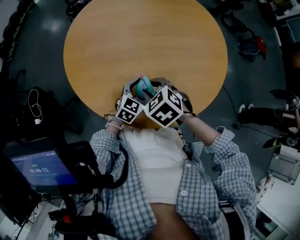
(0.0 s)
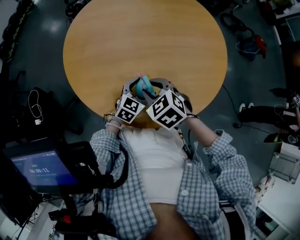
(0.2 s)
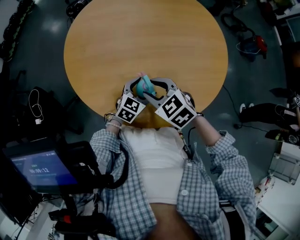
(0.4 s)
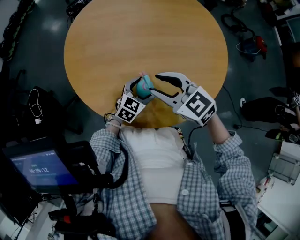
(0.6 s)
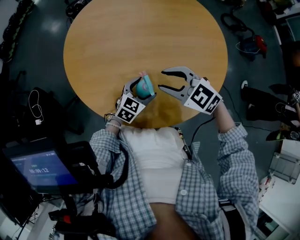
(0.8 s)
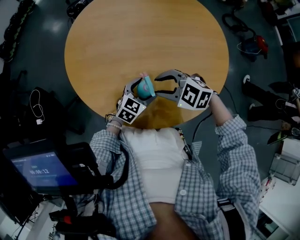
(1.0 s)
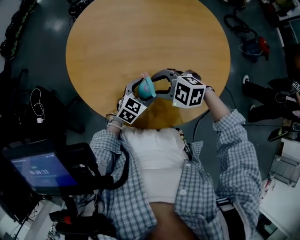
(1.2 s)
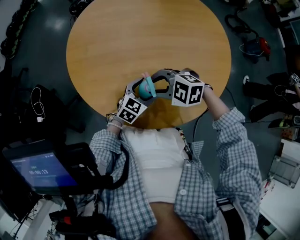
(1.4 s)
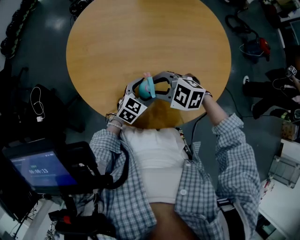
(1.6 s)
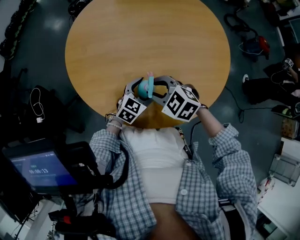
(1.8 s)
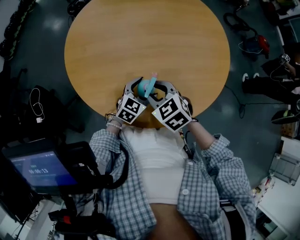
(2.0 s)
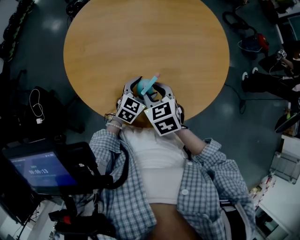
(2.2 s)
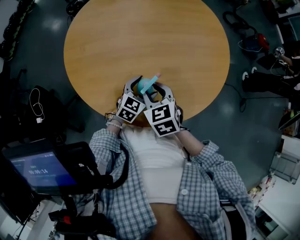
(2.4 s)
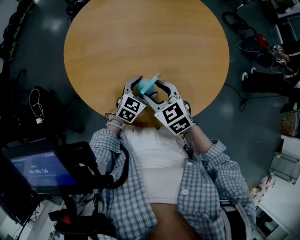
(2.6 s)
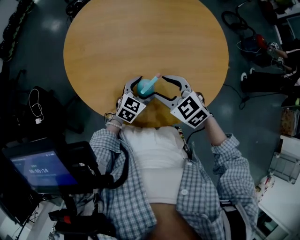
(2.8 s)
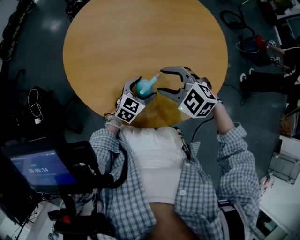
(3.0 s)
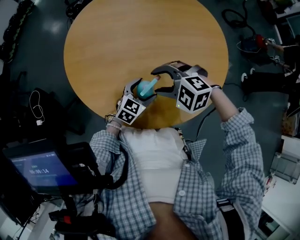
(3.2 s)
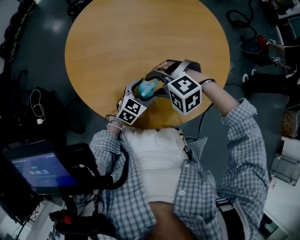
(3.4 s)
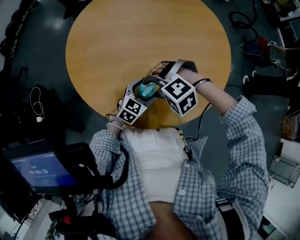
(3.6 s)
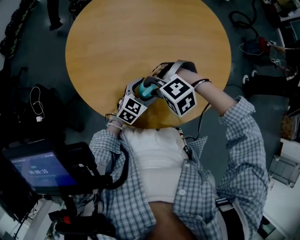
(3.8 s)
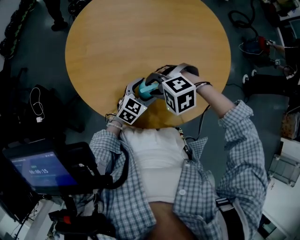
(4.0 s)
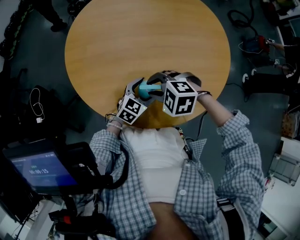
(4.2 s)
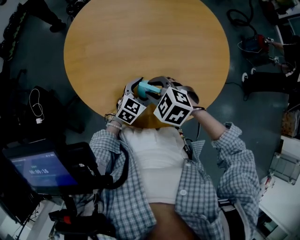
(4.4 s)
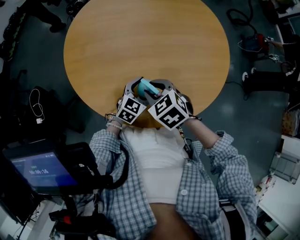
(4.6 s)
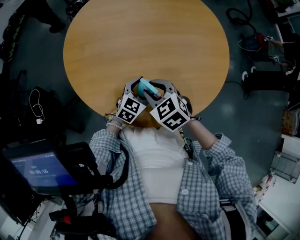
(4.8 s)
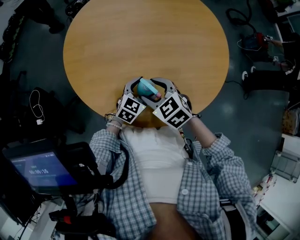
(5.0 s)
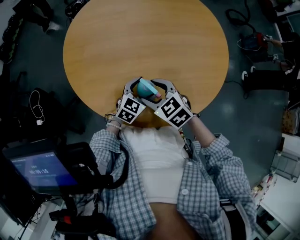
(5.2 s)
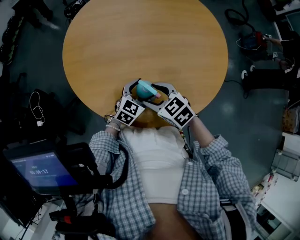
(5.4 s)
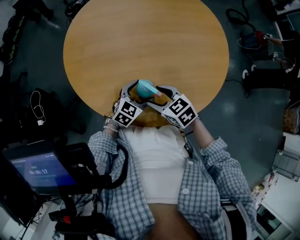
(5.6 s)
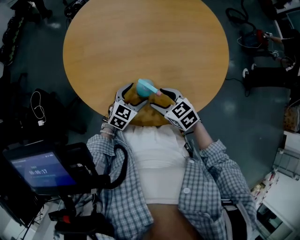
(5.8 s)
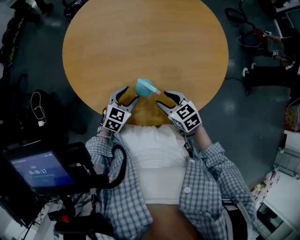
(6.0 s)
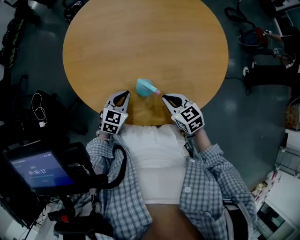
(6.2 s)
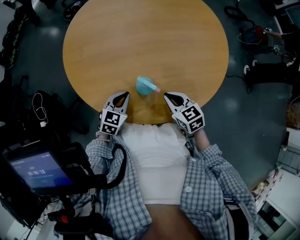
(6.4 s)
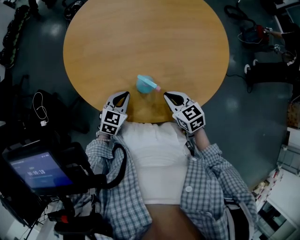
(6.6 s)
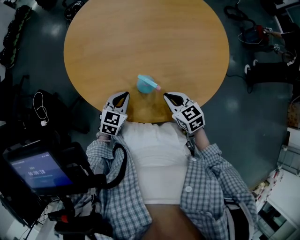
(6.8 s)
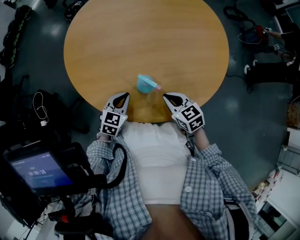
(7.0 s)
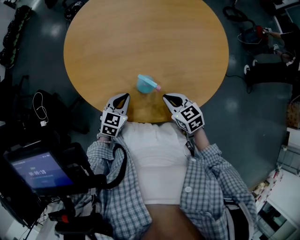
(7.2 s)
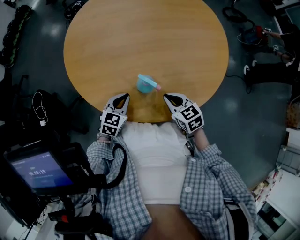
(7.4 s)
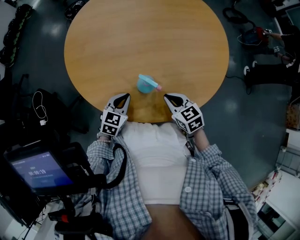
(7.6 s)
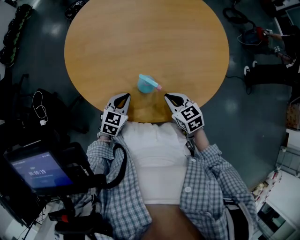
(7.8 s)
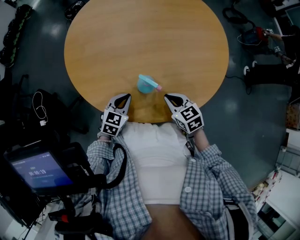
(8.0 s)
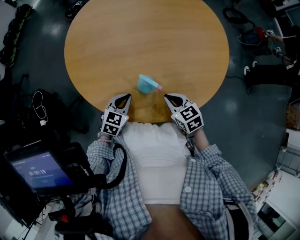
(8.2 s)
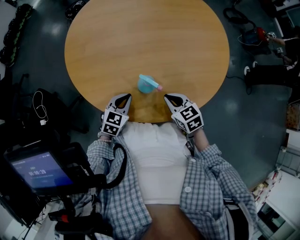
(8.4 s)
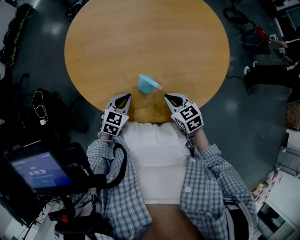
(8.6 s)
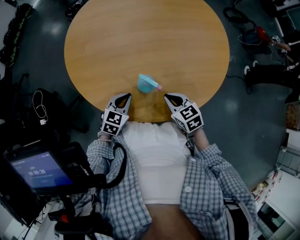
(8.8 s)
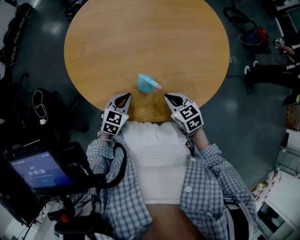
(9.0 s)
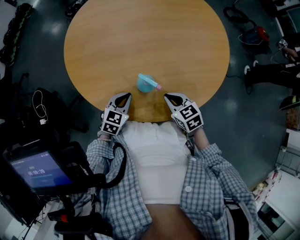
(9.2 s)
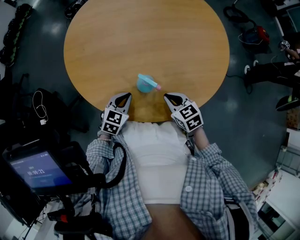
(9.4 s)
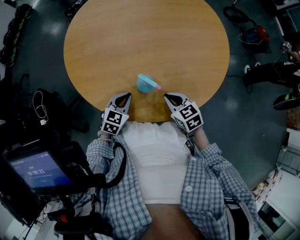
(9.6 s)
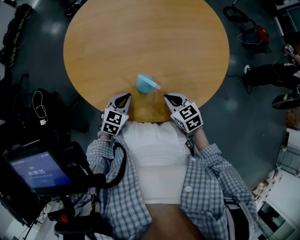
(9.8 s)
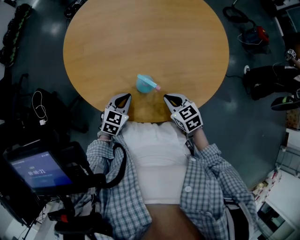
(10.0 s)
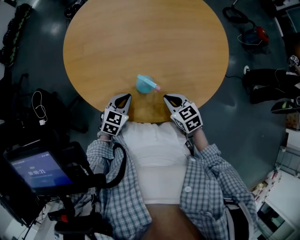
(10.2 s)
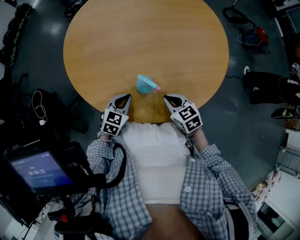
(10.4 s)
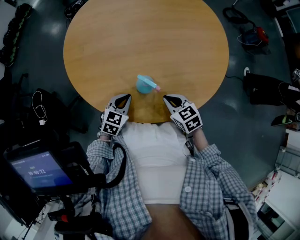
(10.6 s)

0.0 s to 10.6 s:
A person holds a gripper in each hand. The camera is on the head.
0.0 to 1.6 s: The right gripper moves about 5 cm upward and comes back, and changes its angle by roughly 40 degrees.
1.6 to 3.0 s: The right gripper changes place by approximately 5 cm, and opens its fingers.
3.0 to 4.6 s: The right gripper moves approximately 5 cm, rotates approximately 30 degrees, and closes its fingers.
4.6 to 6.0 s: The right gripper travels downward and to the right by roughly 10 cm, while the left gripper shifts approximately 10 cm to the left.
6.0 to 7.6 s: The left gripper closes. The right gripper closes its fingers.
7.6 to 10.6 s: Both grippers stay about where they are.

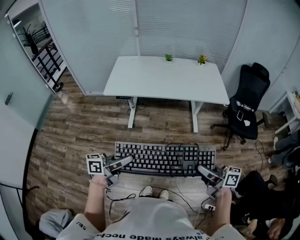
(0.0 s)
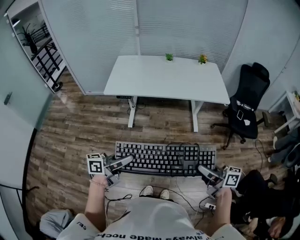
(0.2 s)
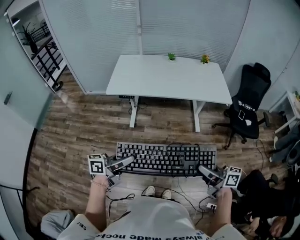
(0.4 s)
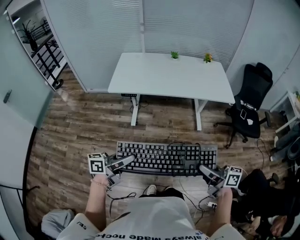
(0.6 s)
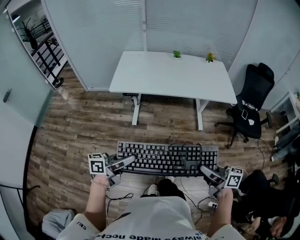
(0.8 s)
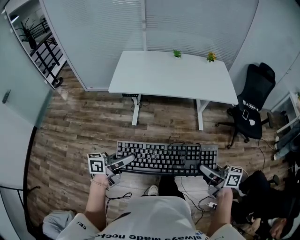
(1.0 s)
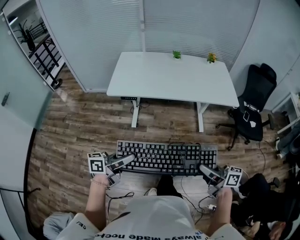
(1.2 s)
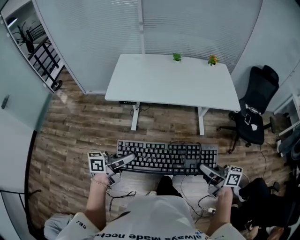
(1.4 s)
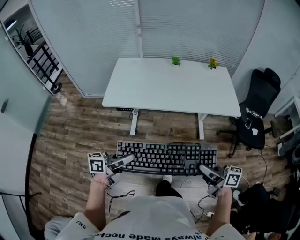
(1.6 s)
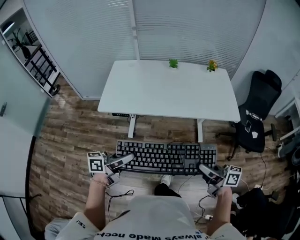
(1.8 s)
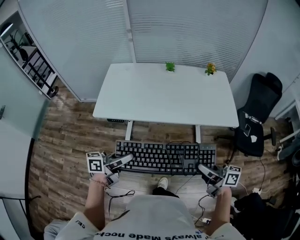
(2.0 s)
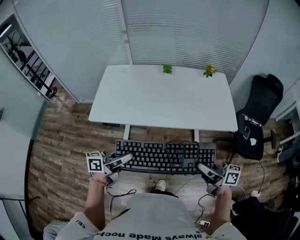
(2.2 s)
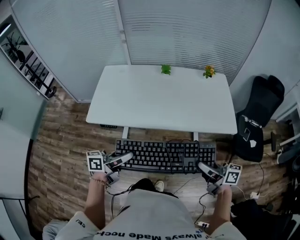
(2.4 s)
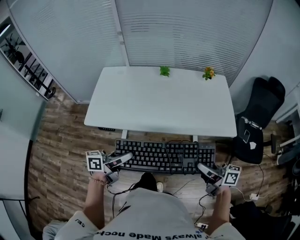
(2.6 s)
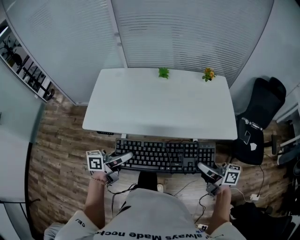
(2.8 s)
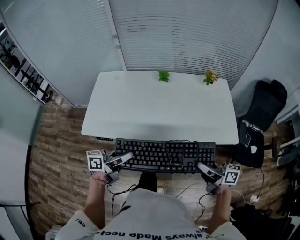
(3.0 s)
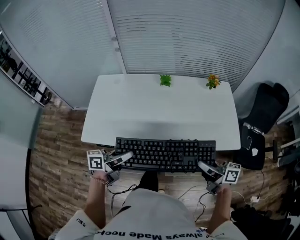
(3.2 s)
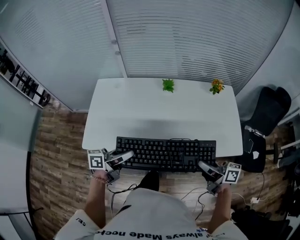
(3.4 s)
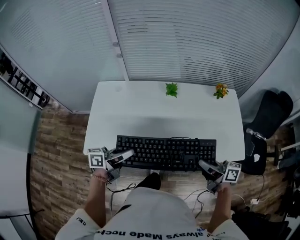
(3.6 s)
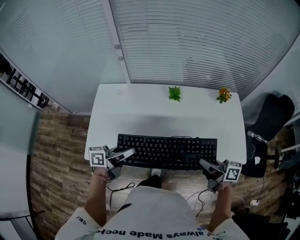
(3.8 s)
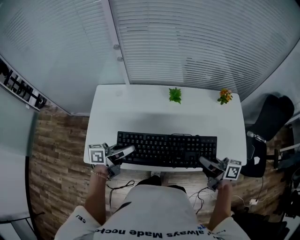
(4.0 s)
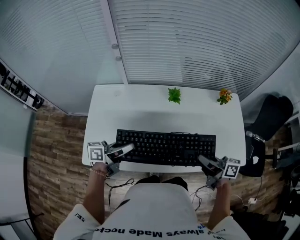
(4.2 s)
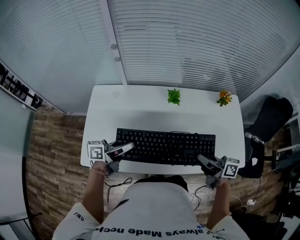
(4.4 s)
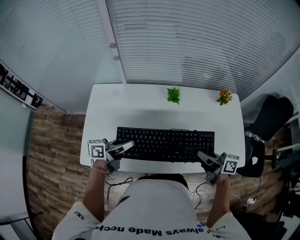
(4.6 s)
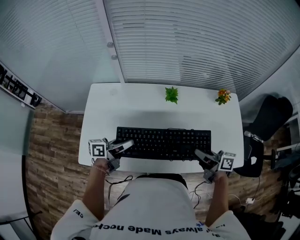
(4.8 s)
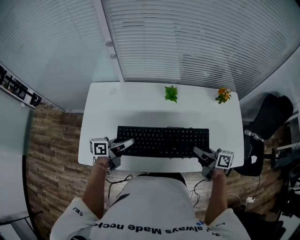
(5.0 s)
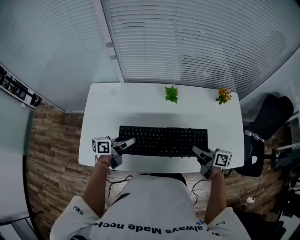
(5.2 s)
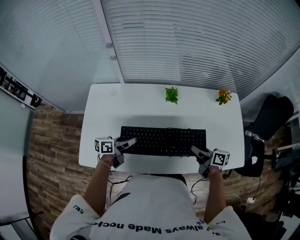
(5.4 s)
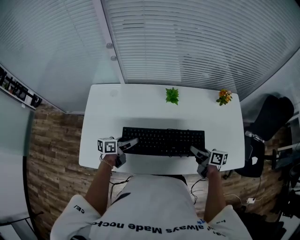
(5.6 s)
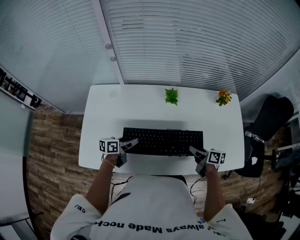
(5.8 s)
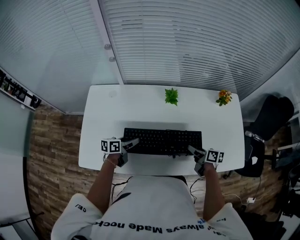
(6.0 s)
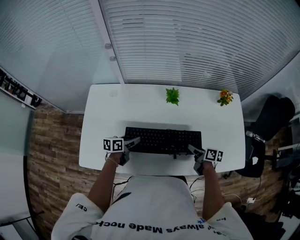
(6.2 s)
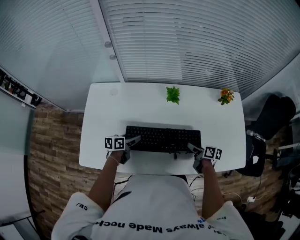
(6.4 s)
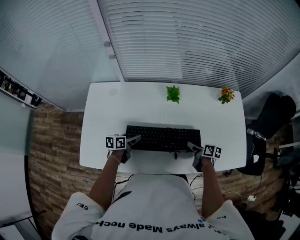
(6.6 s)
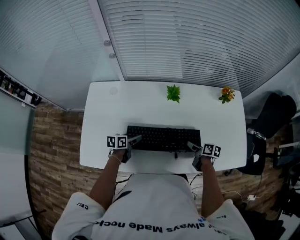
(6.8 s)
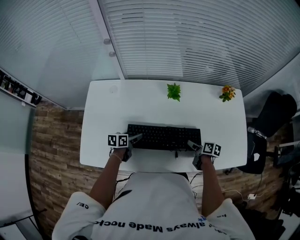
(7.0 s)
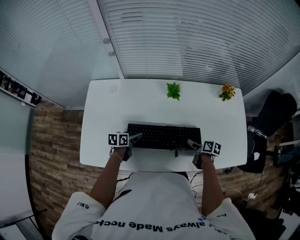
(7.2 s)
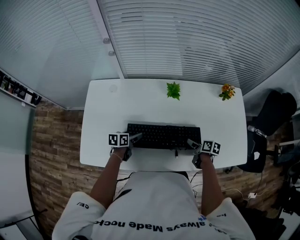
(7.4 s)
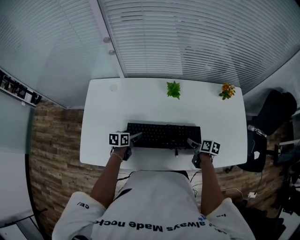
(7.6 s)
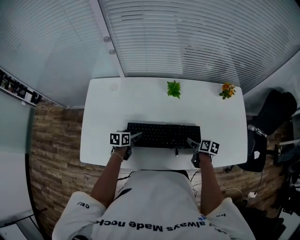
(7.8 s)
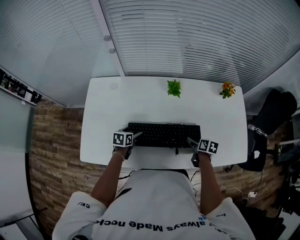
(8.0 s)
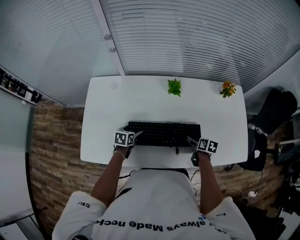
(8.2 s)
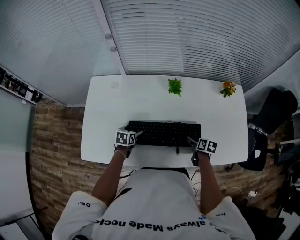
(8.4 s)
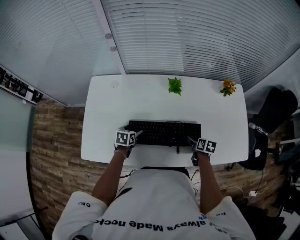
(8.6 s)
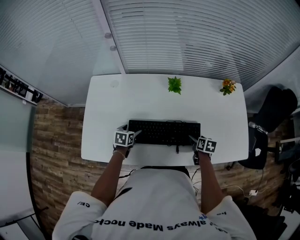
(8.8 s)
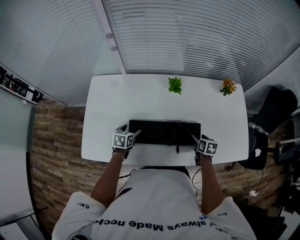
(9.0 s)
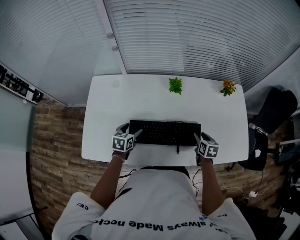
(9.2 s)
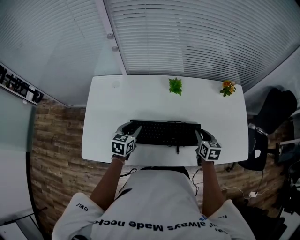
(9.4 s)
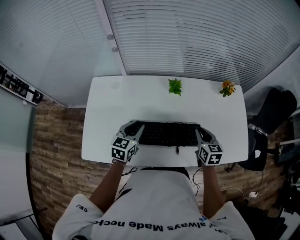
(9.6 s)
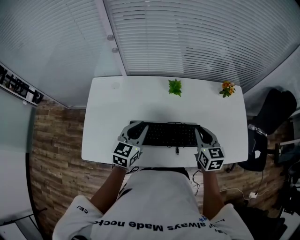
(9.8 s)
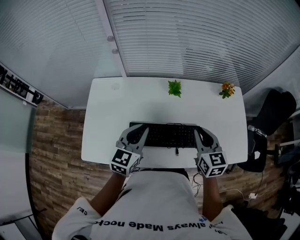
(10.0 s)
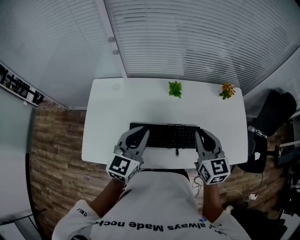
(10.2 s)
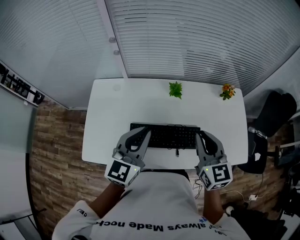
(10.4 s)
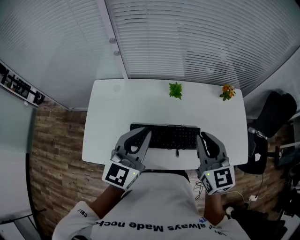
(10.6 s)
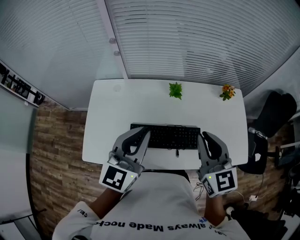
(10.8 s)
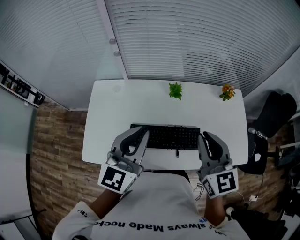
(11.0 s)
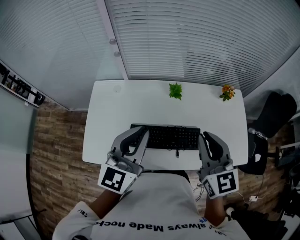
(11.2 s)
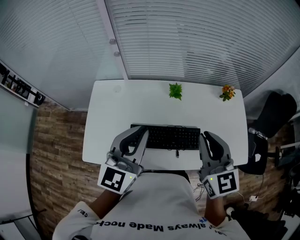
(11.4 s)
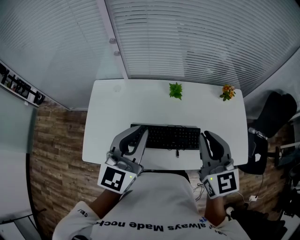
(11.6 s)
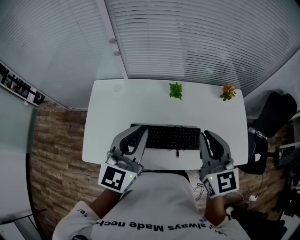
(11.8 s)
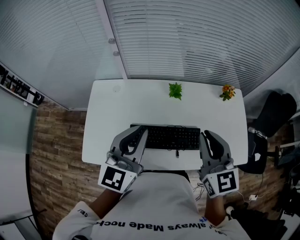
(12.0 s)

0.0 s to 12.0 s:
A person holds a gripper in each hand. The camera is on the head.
0.0 to 1.6 s: The grippers both shift forward by about 15 cm.
1.6 to 3.0 s: The two grippers go approximately 25 cm forward.
3.0 to 4.4 s: Both grippers travel together forward, some 25 cm.
4.4 to 6.0 s: Both grippers move downward, some 15 cm. The right gripper rotates about 20 degrees. The left gripper swivels roughly 20 degrees, and opens up.
6.0 to 7.6 s: The right gripper travels downward by roughly 5 cm, and turns by approximately 20 degrees.
7.6 to 9.0 s: The left gripper changes its angle by approximately 20 degrees; the right gripper rotates some 30 degrees.
9.0 to 10.4 s: Both grippers travel together upward, about 30 cm. The left gripper angles its fingers upward, by some 40 degrees, and closes its fingers. The right gripper tips its fingers upward by approximately 40 degrees, and closes up.
10.4 to 12.0 s: Both grippers move upward, approximately 5 cm.

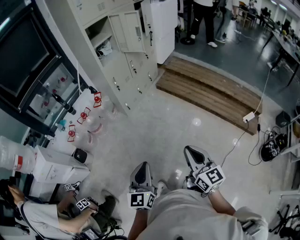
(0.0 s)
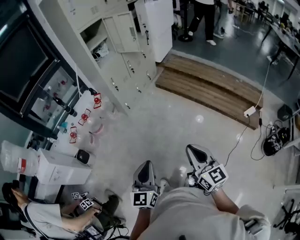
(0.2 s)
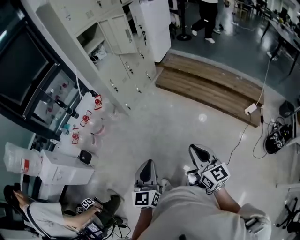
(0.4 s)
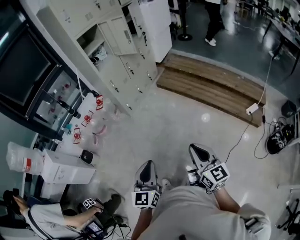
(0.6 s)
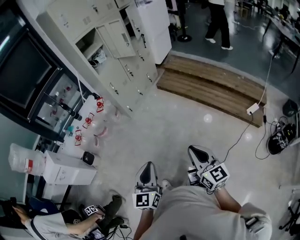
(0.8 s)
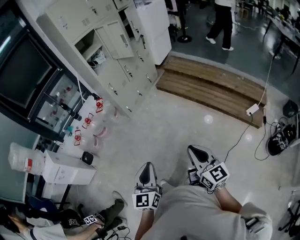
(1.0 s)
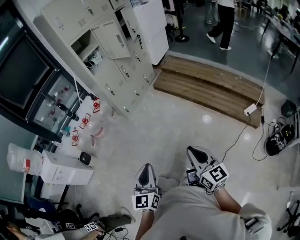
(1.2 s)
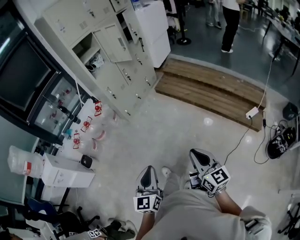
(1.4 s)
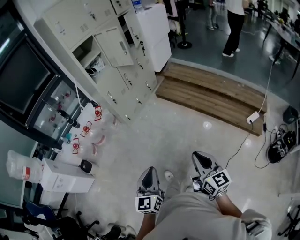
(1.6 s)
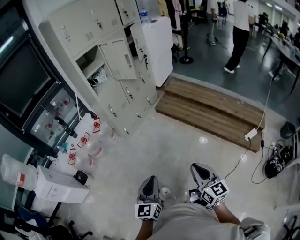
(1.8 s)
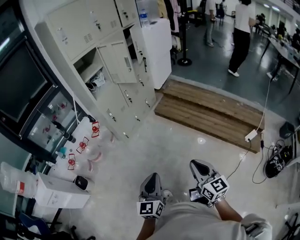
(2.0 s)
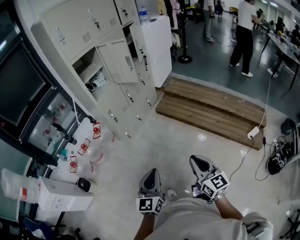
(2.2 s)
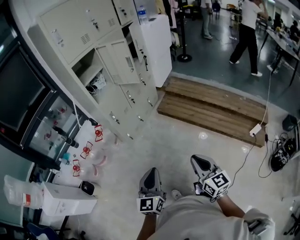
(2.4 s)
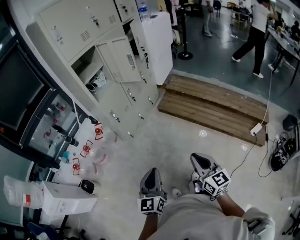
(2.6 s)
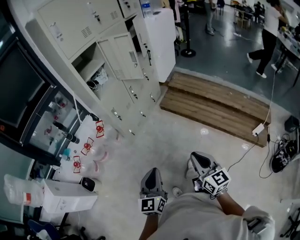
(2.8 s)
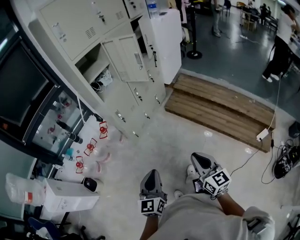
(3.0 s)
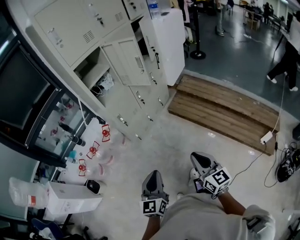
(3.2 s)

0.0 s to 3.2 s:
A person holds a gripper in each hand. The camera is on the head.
0.0 to 1.6 s: Both grippers travel together to the right, approximately 15 cm.
1.6 to 3.2 s: The two grippers go some 30 cm forward.
